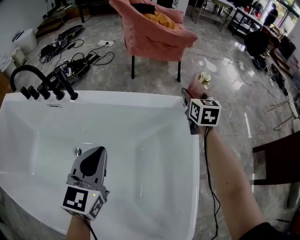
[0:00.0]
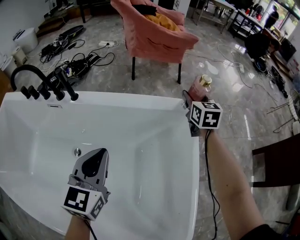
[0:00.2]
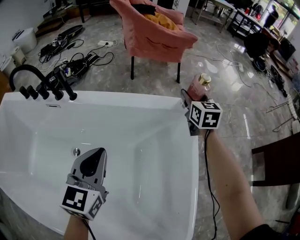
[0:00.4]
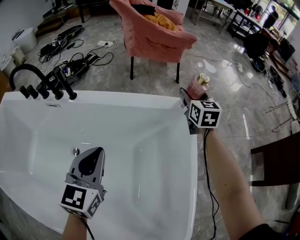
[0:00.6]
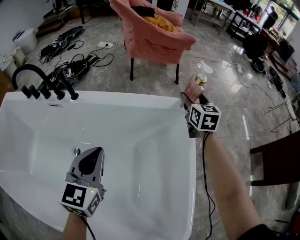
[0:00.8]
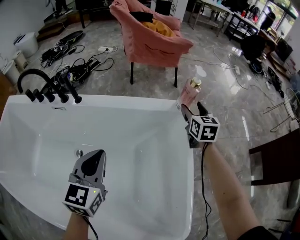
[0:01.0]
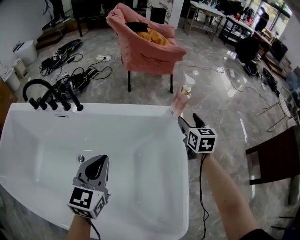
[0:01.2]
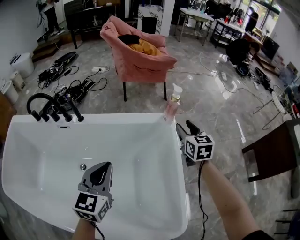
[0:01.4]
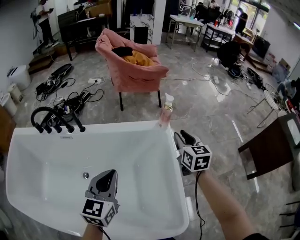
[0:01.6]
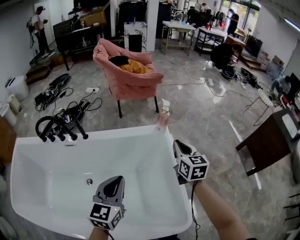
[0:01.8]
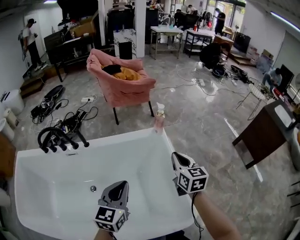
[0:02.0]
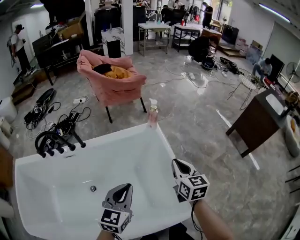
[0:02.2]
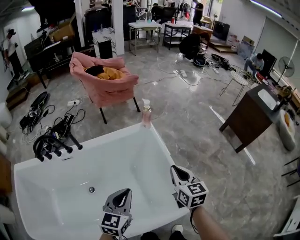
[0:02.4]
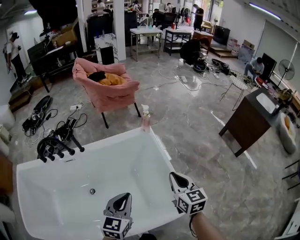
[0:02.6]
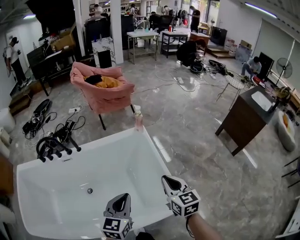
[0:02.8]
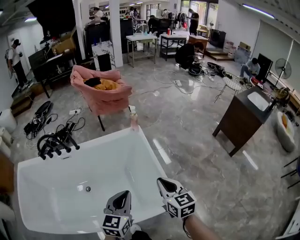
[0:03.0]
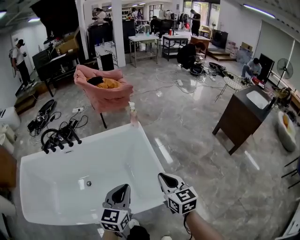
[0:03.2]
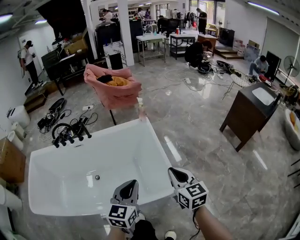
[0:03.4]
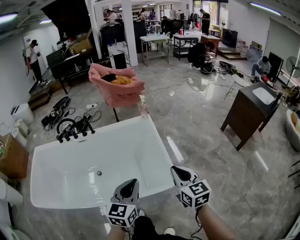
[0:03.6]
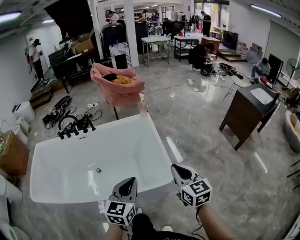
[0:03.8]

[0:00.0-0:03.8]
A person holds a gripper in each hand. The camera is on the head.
0:00.0 to 0:01.2: The left gripper heads upward and backward, covering about 10 cm. Meanwhile the right gripper heads backward and upward, covering some 15 cm.
0:01.2 to 0:02.6: The right gripper travels backward and upward by some 50 cm, and closes, while the left gripper is displaced backward and upward by about 25 cm, and changes its angle by about 30 degrees.
0:02.6 to 0:03.8: The right gripper moves backward, about 30 cm. Meanwhile the left gripper moves backward, to the right and upward, some 35 cm.

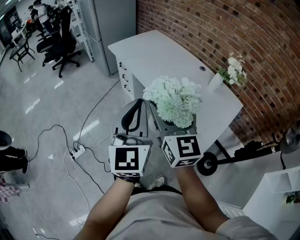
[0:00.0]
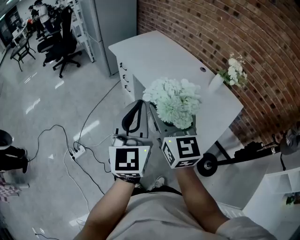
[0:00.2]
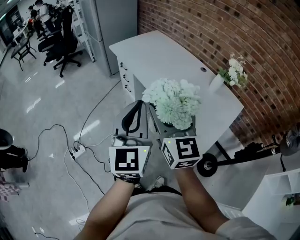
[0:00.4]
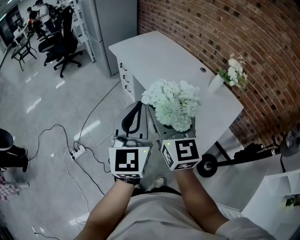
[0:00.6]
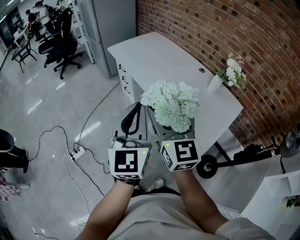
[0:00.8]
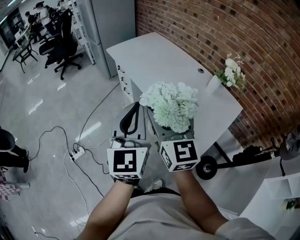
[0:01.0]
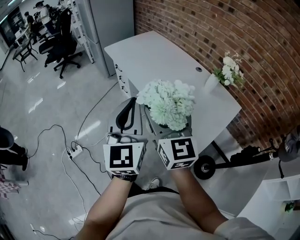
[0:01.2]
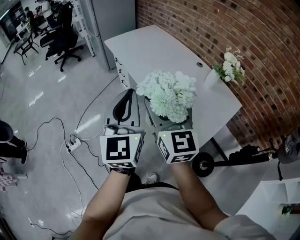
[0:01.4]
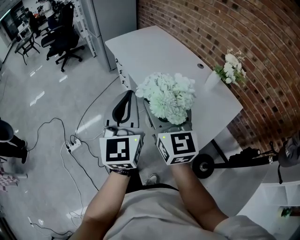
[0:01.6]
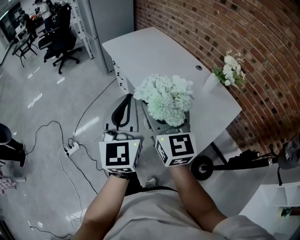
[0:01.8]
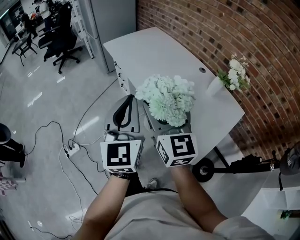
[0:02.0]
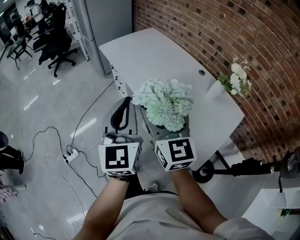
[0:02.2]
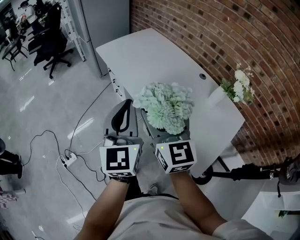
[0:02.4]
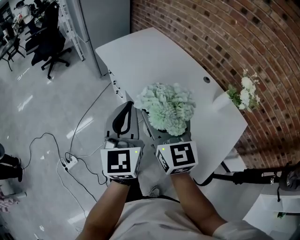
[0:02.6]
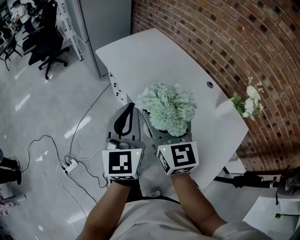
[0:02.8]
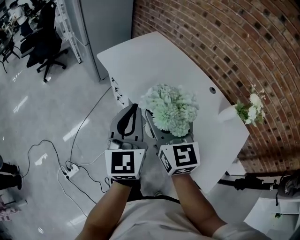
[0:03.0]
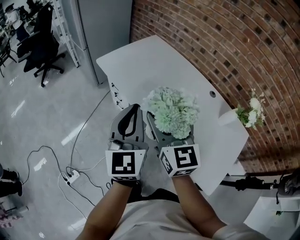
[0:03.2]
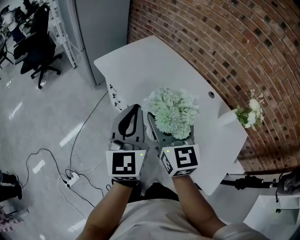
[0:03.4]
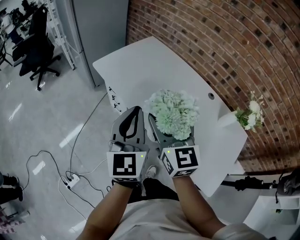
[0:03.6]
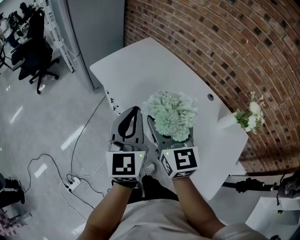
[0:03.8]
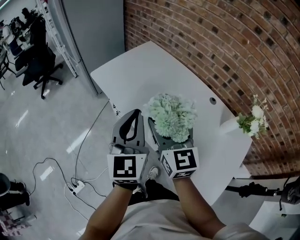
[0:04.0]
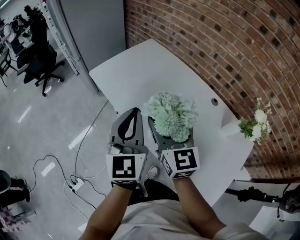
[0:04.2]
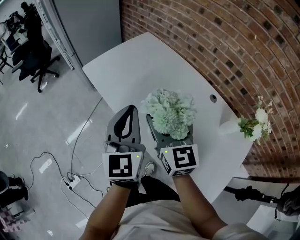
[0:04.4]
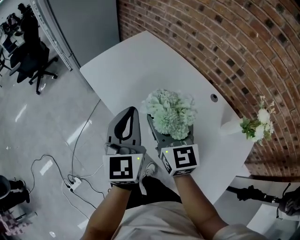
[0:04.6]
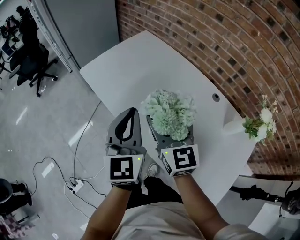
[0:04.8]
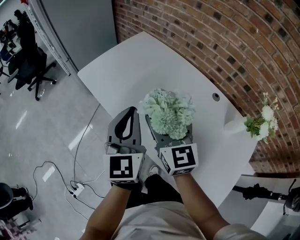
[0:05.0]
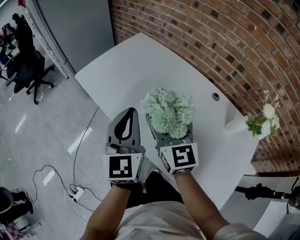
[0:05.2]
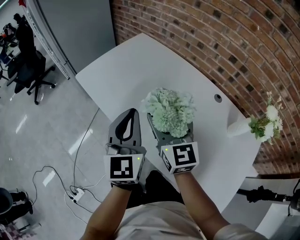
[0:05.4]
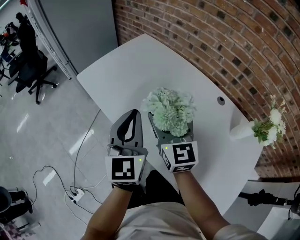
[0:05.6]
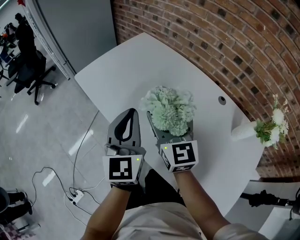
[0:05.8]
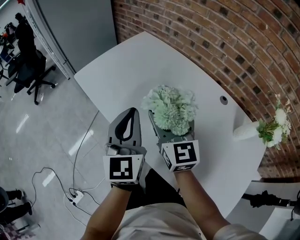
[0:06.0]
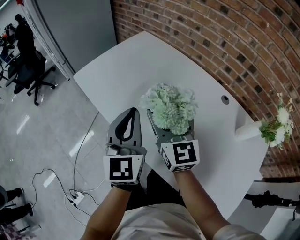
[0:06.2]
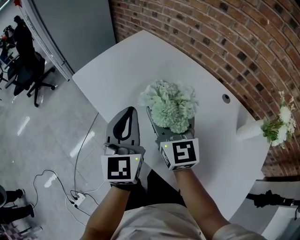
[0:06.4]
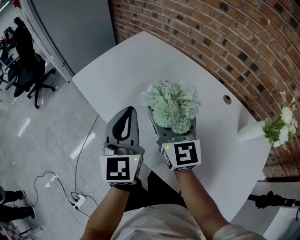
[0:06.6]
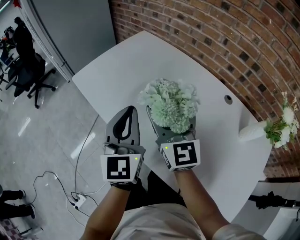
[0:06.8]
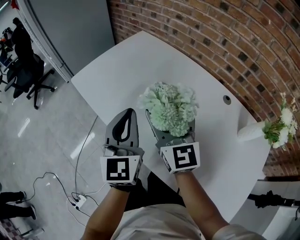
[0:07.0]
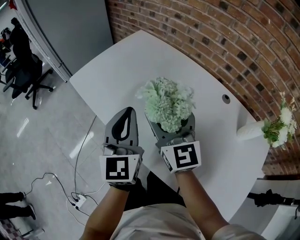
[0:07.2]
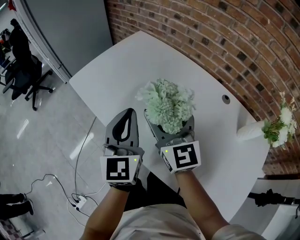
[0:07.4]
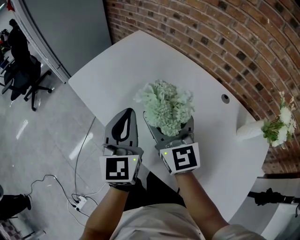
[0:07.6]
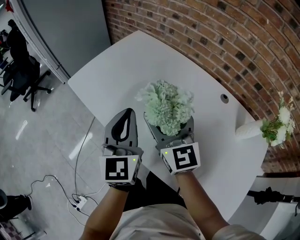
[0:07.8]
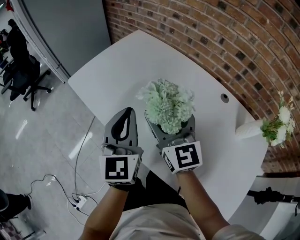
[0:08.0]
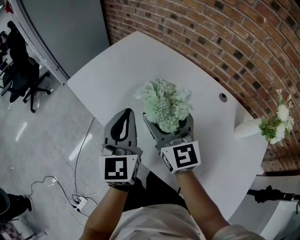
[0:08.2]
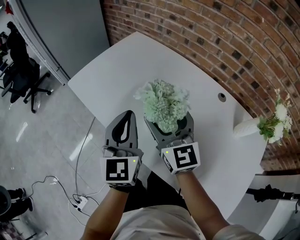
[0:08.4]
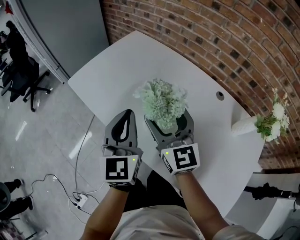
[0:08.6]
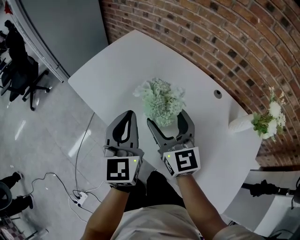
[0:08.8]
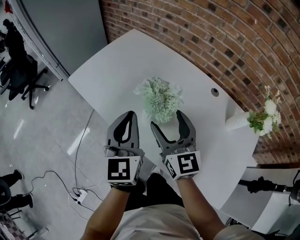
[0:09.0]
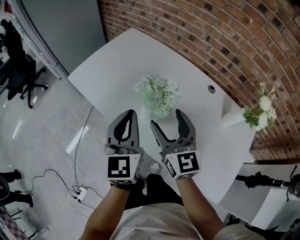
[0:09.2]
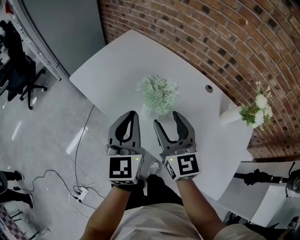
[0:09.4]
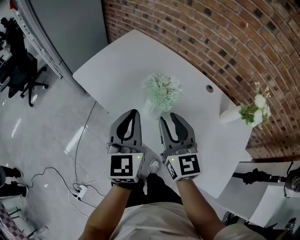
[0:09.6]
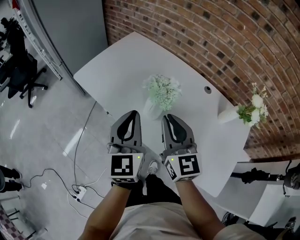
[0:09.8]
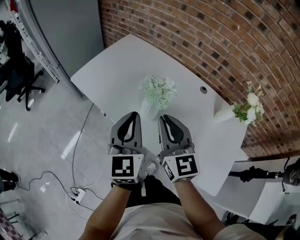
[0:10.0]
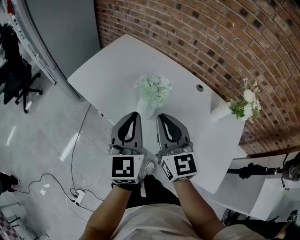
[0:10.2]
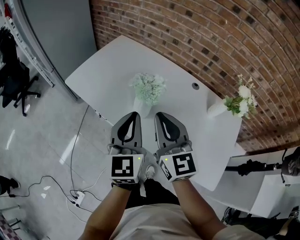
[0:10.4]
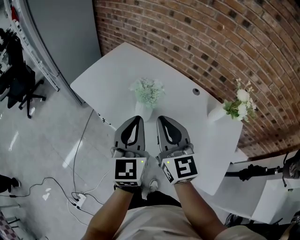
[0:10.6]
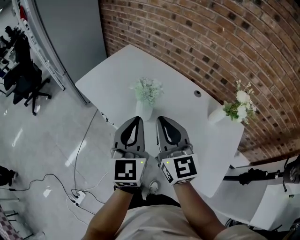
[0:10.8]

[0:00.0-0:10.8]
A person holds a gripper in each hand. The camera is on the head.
0:00.0 to 0:01.6: Both grippers move to the right, some 5 cm.
0:01.6 to 0:03.0: The two grippers go roughly 25 cm forward.
0:03.0 to 0:04.6: The right gripper heads forward, to the right and downward, covering some 15 cm, while the left gripper heads forward, covering roughly 15 cm.
0:04.6 to 0:06.2: The two grippers go some 10 cm downward and forward.
0:06.2 to 0:07.8: The grippers stay close to where they were, moving slightly.
0:07.8 to 0:09.2: The grippers both shift backward by roughly 5 cm.
0:09.2 to 0:10.8: The right gripper moves upward and backward, about 15 cm, and closes up; the left gripper is displaced backward and upward by approximately 15 cm.

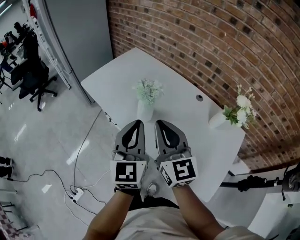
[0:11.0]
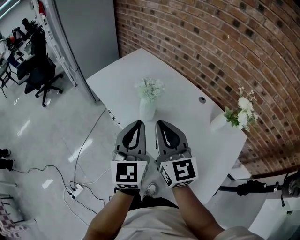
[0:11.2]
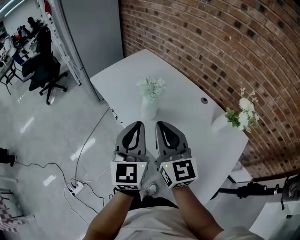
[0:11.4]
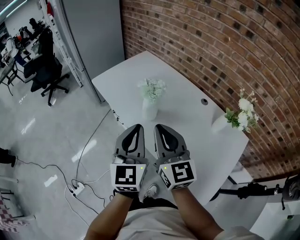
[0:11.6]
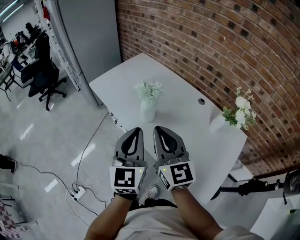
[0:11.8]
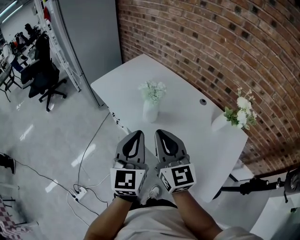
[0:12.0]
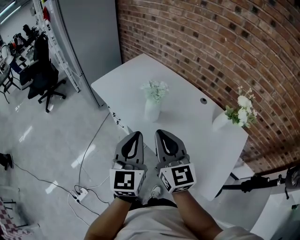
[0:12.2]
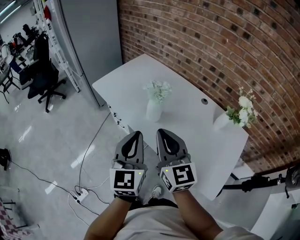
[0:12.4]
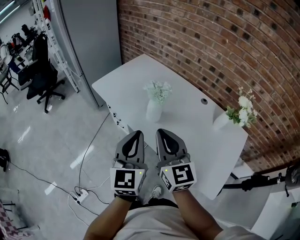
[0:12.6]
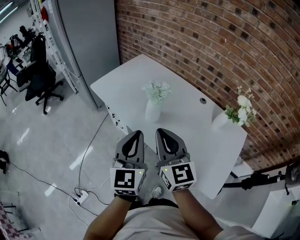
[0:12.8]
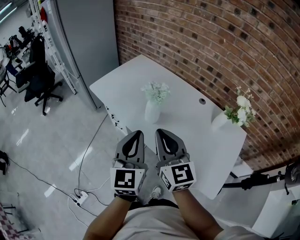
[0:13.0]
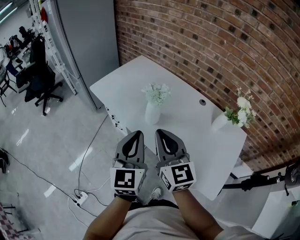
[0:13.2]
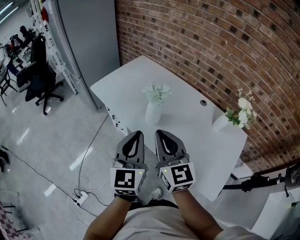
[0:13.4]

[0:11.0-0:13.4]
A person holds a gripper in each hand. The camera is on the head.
0:11.0 to 0:12.2: Both grippers move backward, roughly 5 cm.
0:12.2 to 0:13.4: The grippers make only small movements.

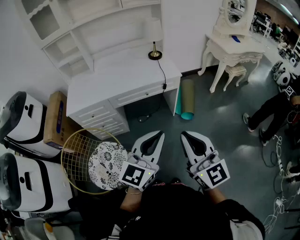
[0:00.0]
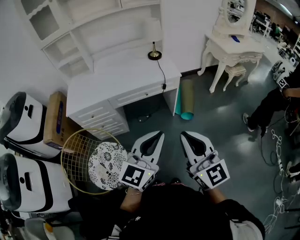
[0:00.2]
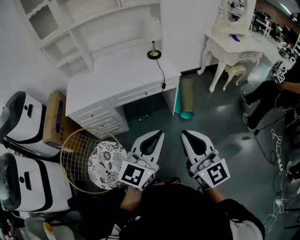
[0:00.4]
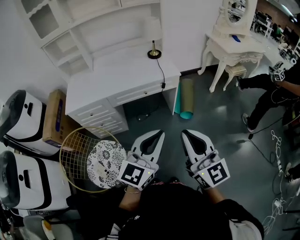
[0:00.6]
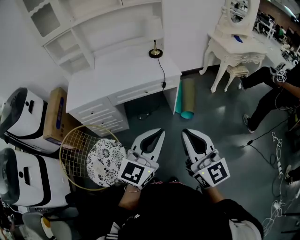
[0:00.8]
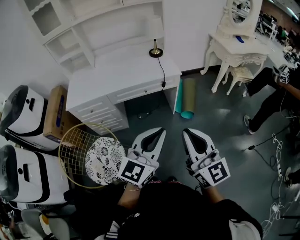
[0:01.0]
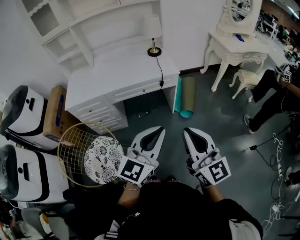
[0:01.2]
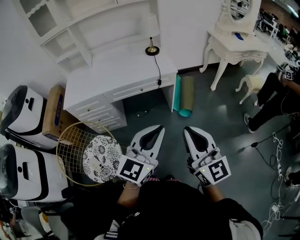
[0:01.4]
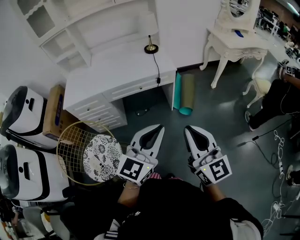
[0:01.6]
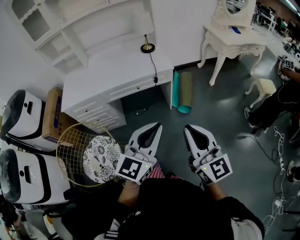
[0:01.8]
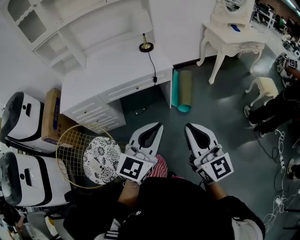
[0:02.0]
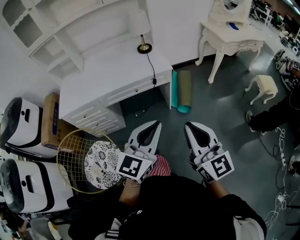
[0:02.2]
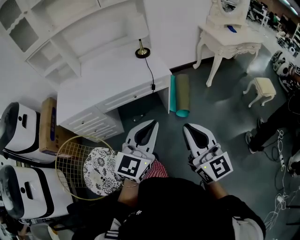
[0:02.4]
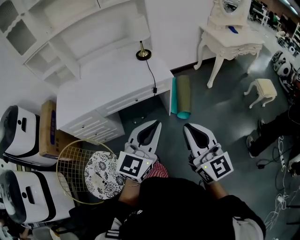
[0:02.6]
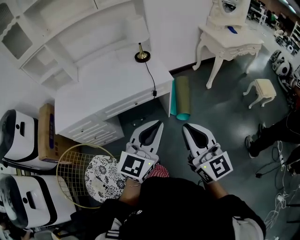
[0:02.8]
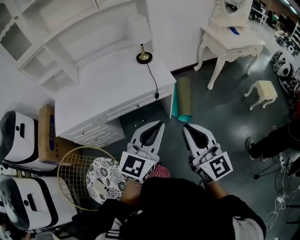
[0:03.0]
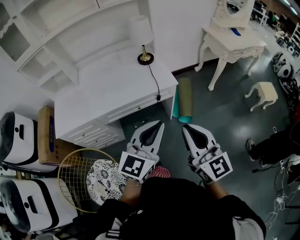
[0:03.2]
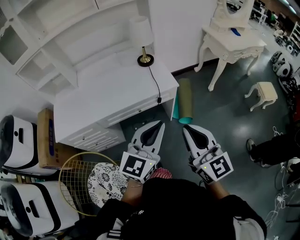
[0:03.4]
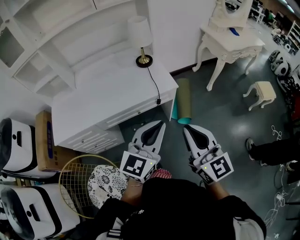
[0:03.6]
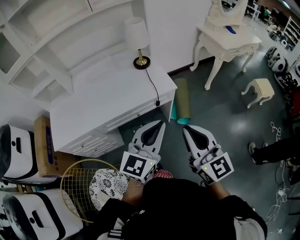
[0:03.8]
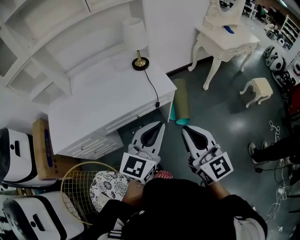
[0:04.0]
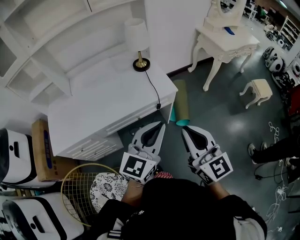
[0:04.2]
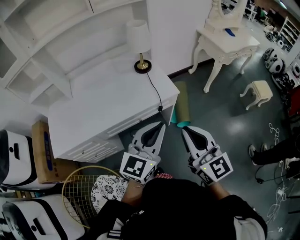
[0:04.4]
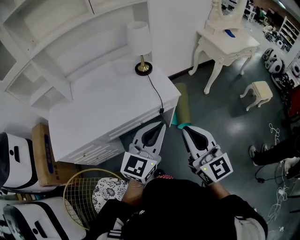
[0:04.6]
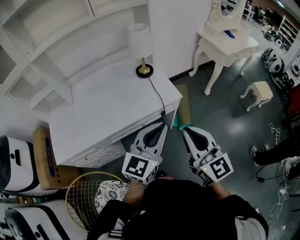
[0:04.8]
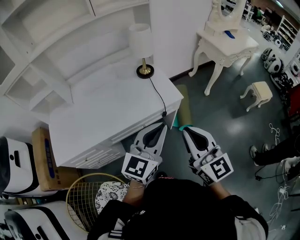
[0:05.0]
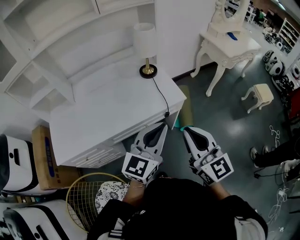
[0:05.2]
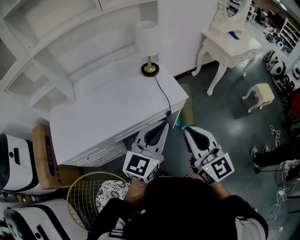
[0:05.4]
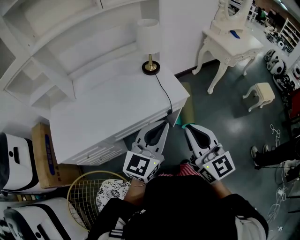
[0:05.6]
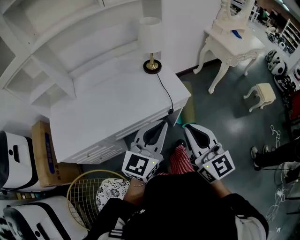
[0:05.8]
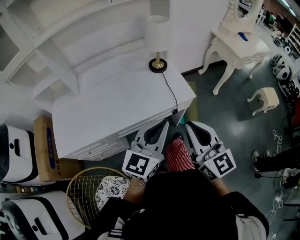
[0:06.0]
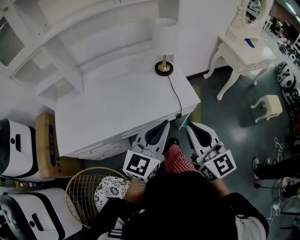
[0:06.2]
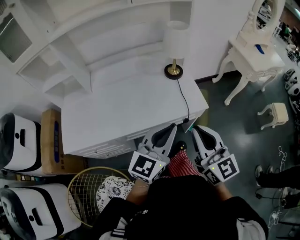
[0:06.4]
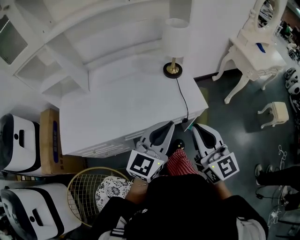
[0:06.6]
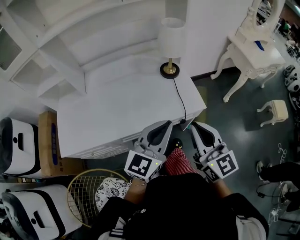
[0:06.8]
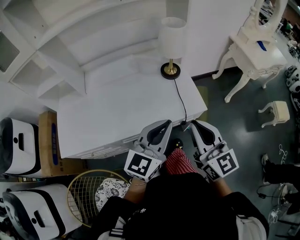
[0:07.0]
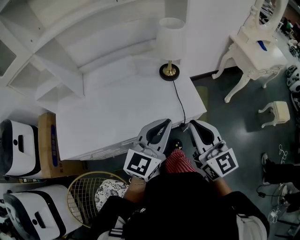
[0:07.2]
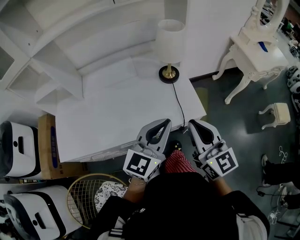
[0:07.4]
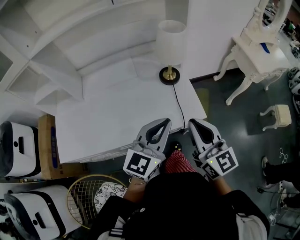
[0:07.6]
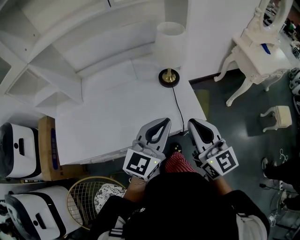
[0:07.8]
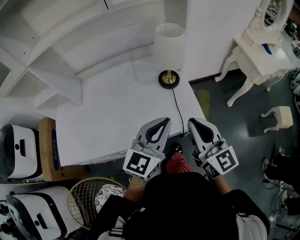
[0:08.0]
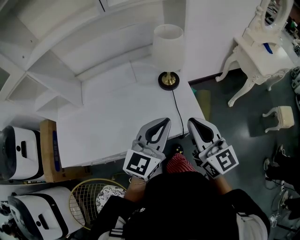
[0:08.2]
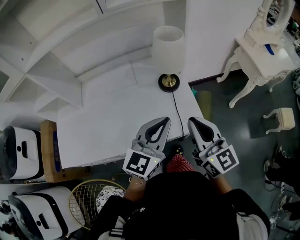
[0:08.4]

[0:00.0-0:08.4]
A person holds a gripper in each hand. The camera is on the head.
0:00.0 to 0:01.4: The two grippers go approximately 10 cm to the right.
0:01.4 to 0:02.8: The two grippers go some 15 cm forward.
0:02.8 to 0:04.2: Both grippers move forward and to the left, approximately 15 cm.
0:04.2 to 0:05.6: The grippers both shift to the left by some 5 cm.
0:05.6 to 0:07.0: Both grippers move forward, approximately 10 cm.
0:07.0 to 0:08.4: Both grippers move forward, some 10 cm.
